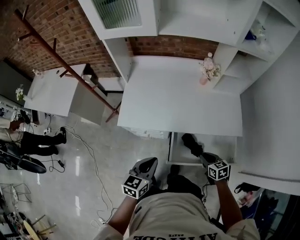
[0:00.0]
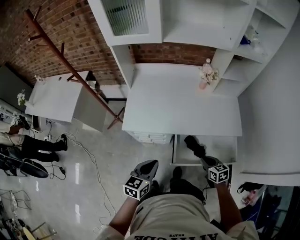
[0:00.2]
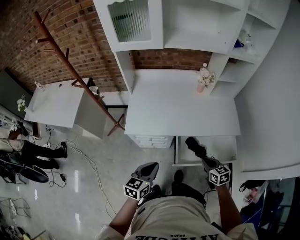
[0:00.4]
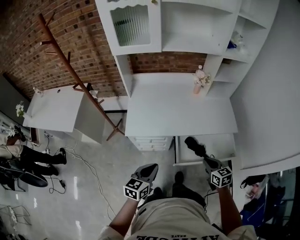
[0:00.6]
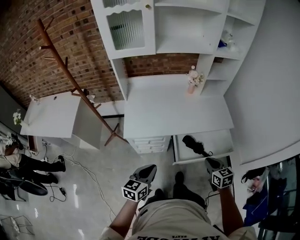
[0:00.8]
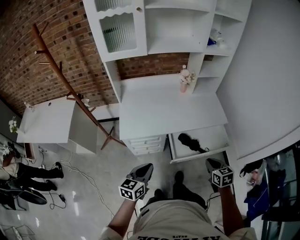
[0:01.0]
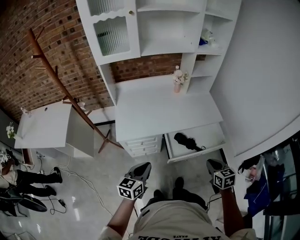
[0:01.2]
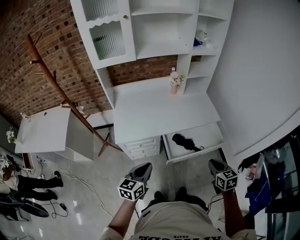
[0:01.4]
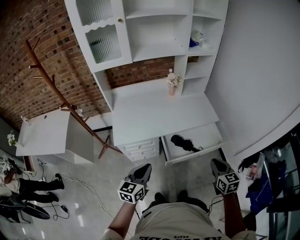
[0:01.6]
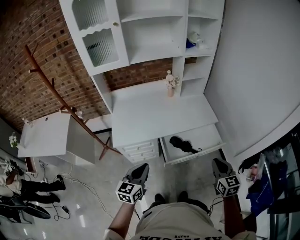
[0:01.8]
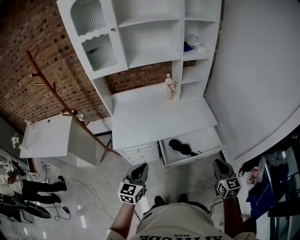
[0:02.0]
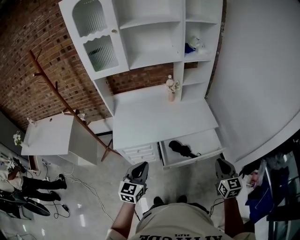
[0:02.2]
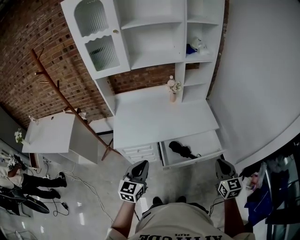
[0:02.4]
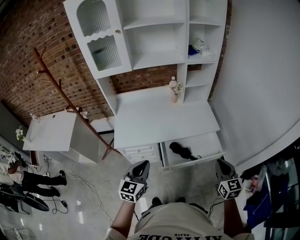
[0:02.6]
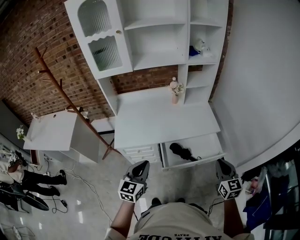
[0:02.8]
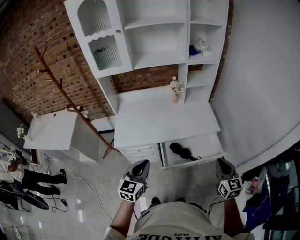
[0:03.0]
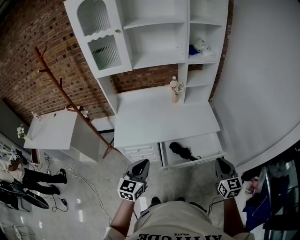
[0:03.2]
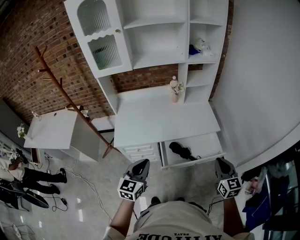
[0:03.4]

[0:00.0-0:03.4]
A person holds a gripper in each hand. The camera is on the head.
0.0 to 1.6 s: The right gripper shifts by about 30 cm, and swivels about 40 degrees. The left gripper moves some 15 cm.
1.6 to 3.4 s: Both grippers move to the right and upward, some 10 cm.

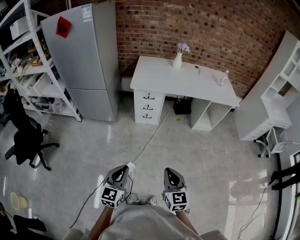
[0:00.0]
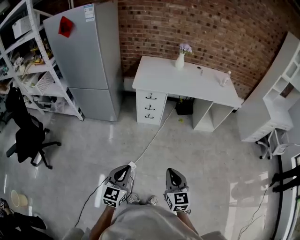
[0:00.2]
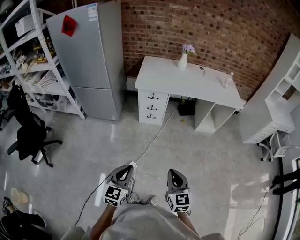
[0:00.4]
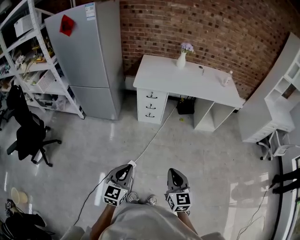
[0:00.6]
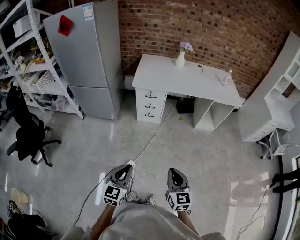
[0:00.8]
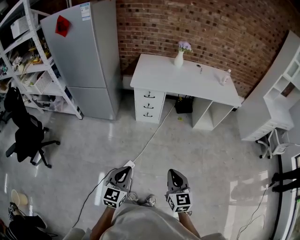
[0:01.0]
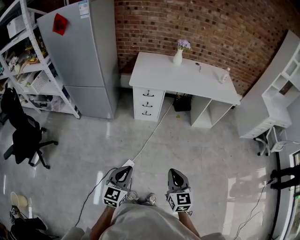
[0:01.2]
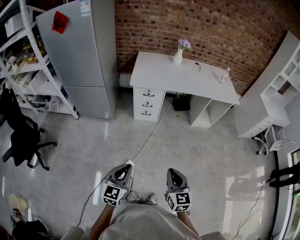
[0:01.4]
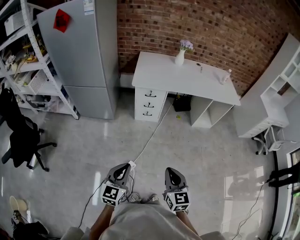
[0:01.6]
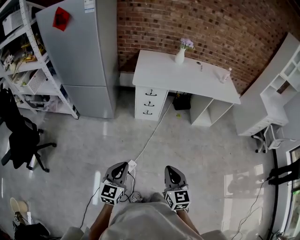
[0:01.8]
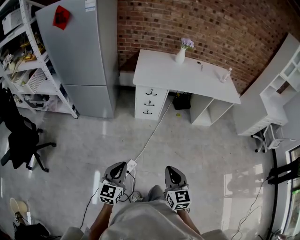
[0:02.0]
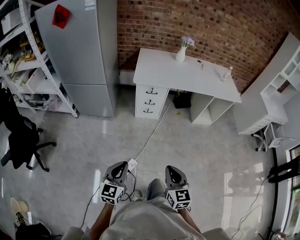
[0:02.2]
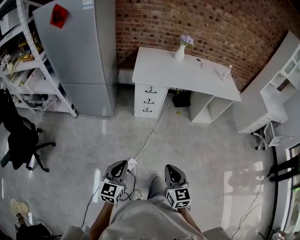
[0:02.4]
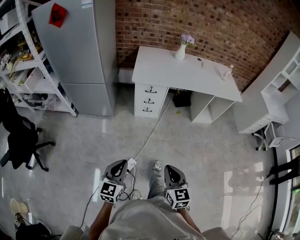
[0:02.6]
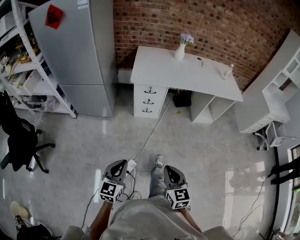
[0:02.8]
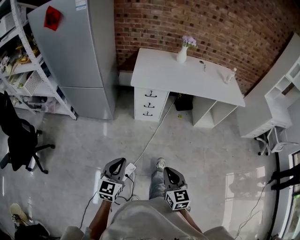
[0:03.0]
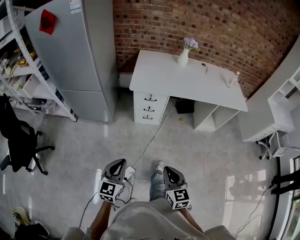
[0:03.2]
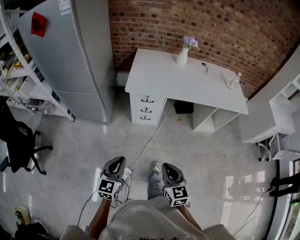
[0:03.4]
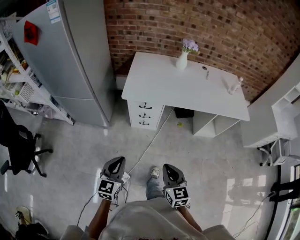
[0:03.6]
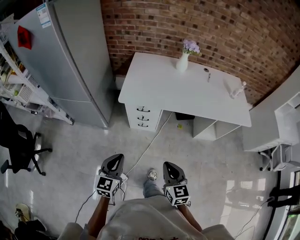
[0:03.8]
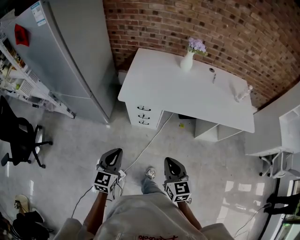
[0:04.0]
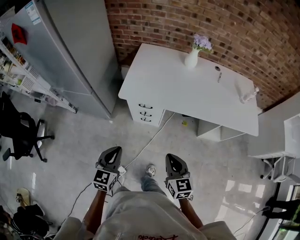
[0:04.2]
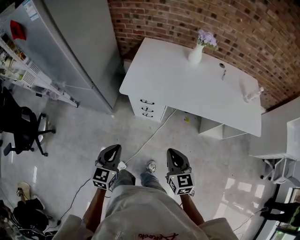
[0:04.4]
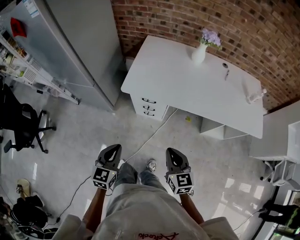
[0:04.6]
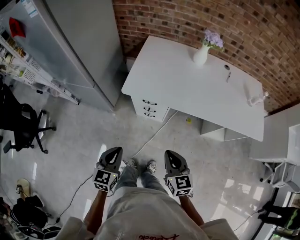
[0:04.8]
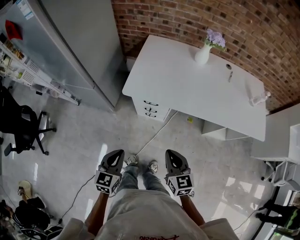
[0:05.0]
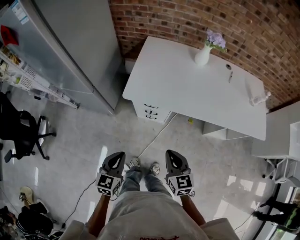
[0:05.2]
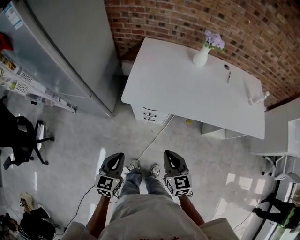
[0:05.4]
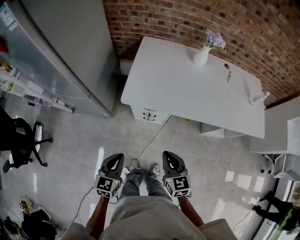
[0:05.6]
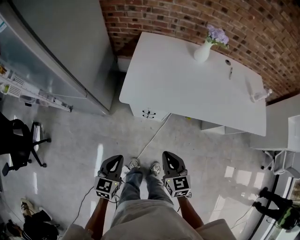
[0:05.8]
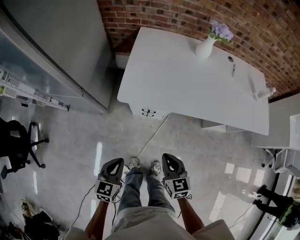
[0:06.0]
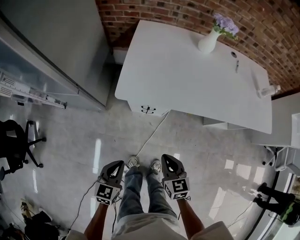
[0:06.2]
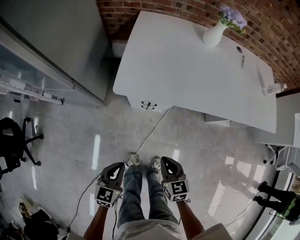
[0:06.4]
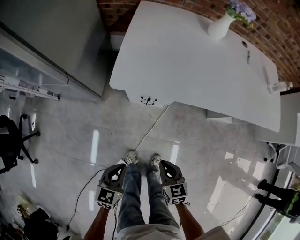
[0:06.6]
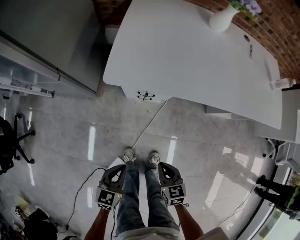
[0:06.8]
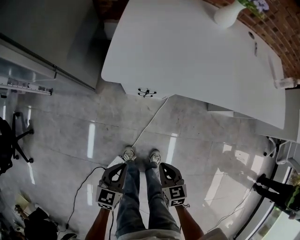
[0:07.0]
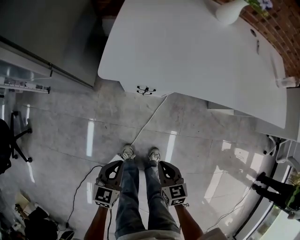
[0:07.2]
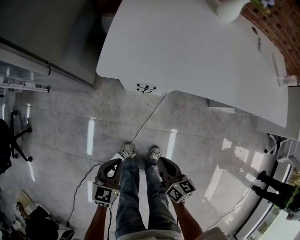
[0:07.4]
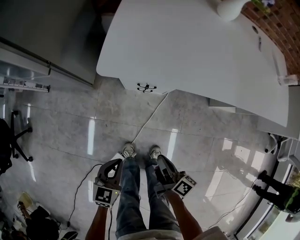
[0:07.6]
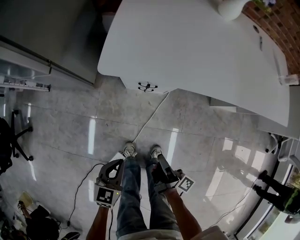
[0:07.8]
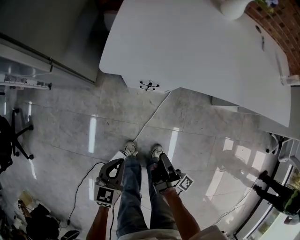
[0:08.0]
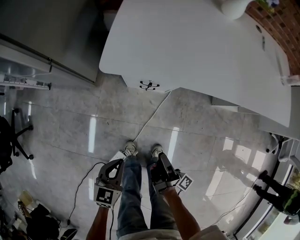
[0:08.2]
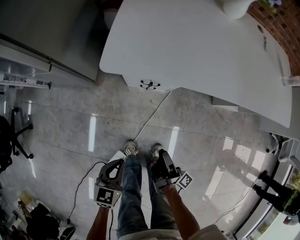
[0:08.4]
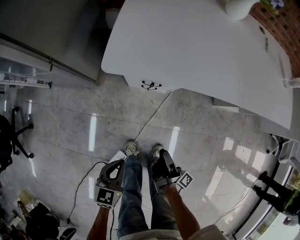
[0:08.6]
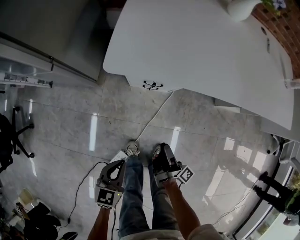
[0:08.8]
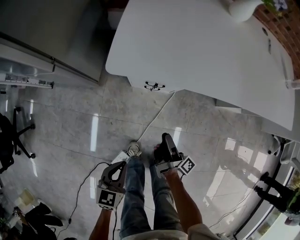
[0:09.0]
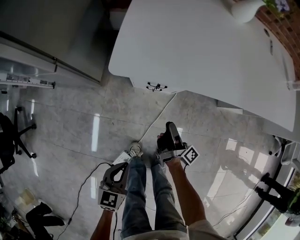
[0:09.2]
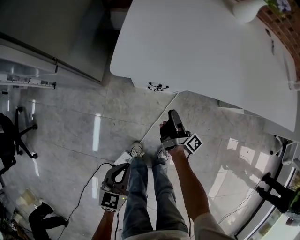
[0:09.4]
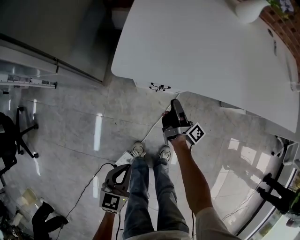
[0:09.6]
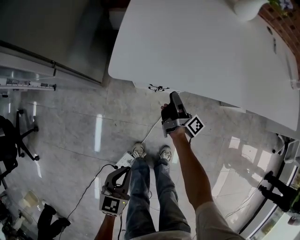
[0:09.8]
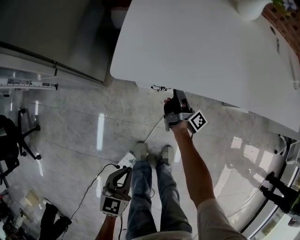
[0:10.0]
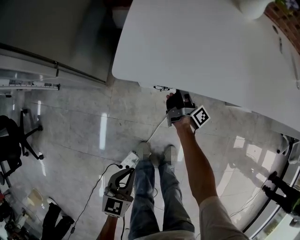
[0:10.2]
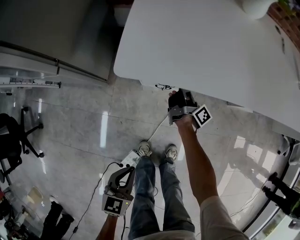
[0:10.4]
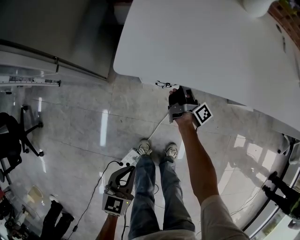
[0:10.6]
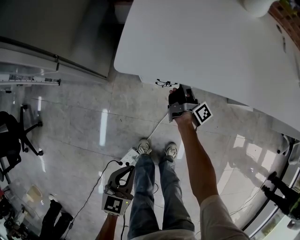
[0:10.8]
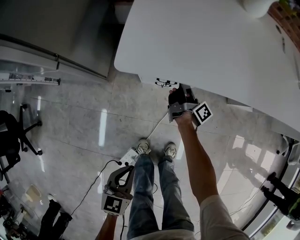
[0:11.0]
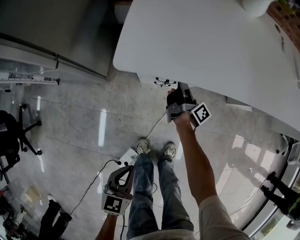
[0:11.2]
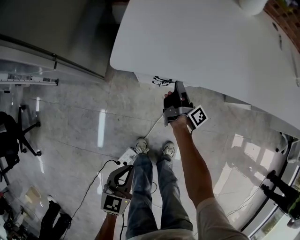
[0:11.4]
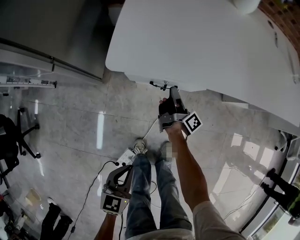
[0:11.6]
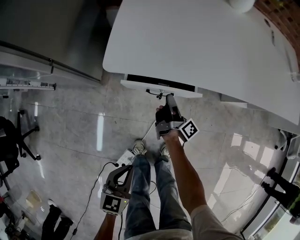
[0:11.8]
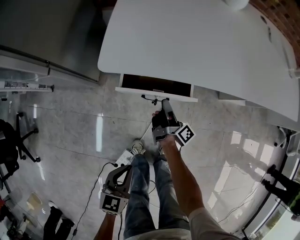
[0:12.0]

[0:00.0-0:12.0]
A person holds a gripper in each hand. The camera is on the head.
0.0 to 1.6 s: The left gripper changes place by roughly 5 cm, while the right gripper ends up roughly 5 cm from where it was.
1.6 to 3.0 s: Both grippers travel together forward, some 10 cm.
3.0 to 4.4 s: The grippers both shift forward and to the right by some 35 cm.
4.4 to 6.0 s: The right gripper shifts approximately 15 cm downward, to the left and forward. Meanwhile the left gripper travels downward, forward and to the left by some 15 cm.
6.0 to 7.6 s: Both grippers move downward, roughly 20 cm. The right gripper rolls clockwise, seen from behind, by approximately 60 degrees.
7.6 to 9.0 s: The right gripper is displaced forward and downward by approximately 10 cm, turns by about 30 degrees, and opens its fingers.
9.0 to 10.4 s: The right gripper travels forward by about 25 cm, and closes its fingers.
10.4 to 12.0 s: The right gripper shifts about 10 cm backward.

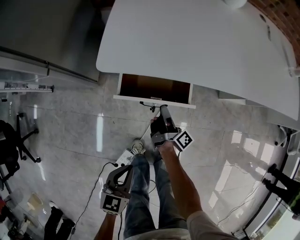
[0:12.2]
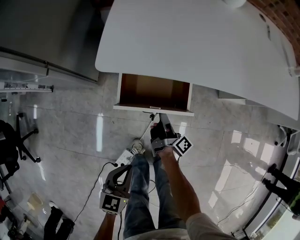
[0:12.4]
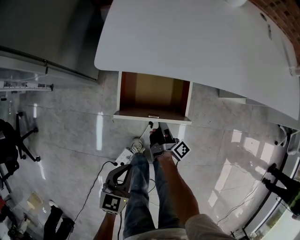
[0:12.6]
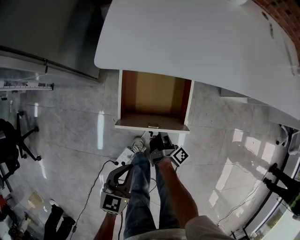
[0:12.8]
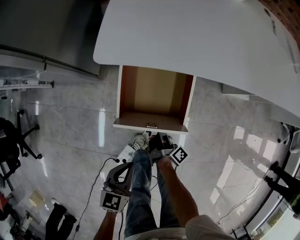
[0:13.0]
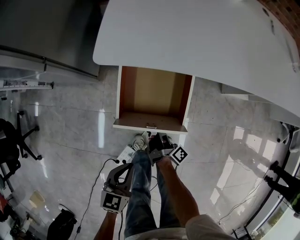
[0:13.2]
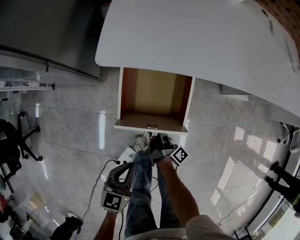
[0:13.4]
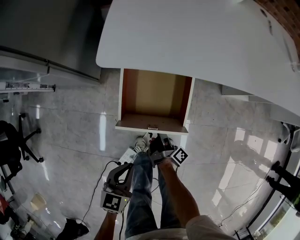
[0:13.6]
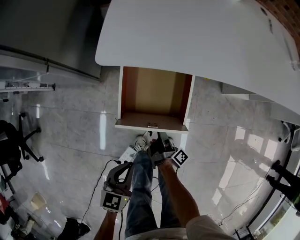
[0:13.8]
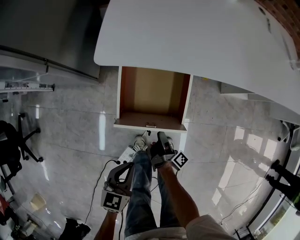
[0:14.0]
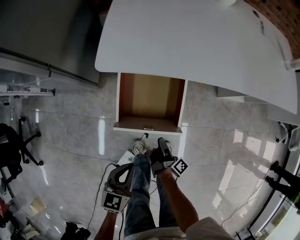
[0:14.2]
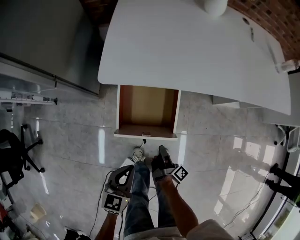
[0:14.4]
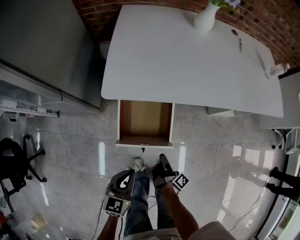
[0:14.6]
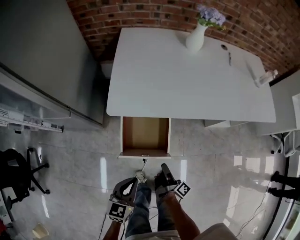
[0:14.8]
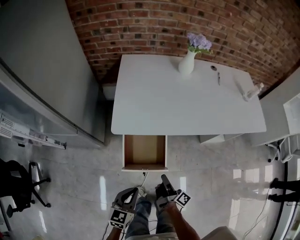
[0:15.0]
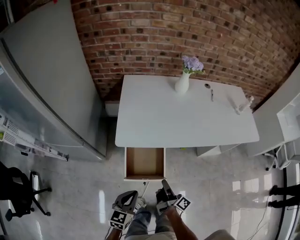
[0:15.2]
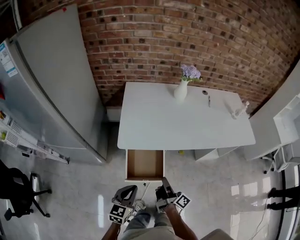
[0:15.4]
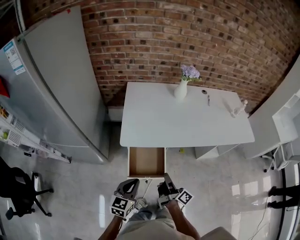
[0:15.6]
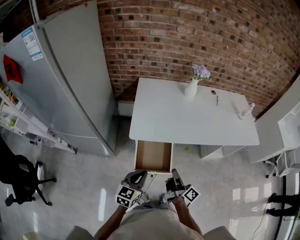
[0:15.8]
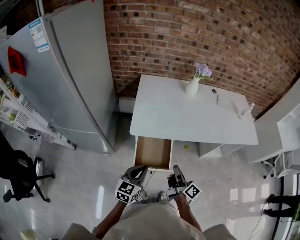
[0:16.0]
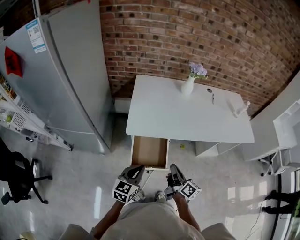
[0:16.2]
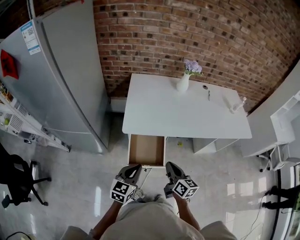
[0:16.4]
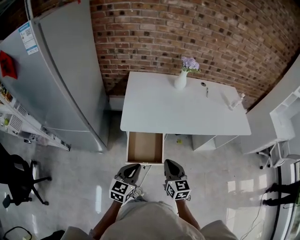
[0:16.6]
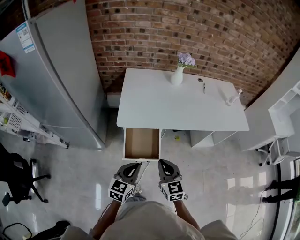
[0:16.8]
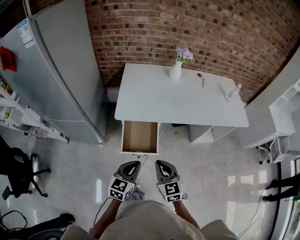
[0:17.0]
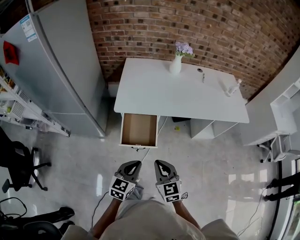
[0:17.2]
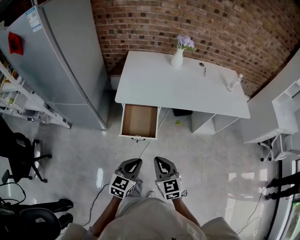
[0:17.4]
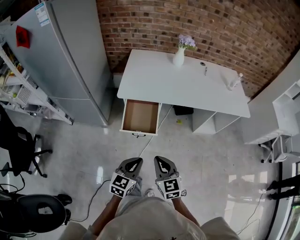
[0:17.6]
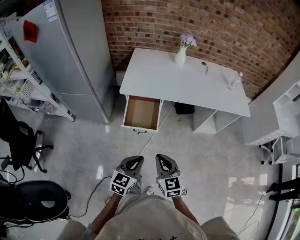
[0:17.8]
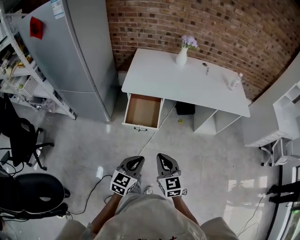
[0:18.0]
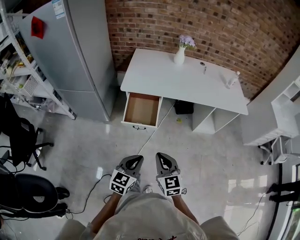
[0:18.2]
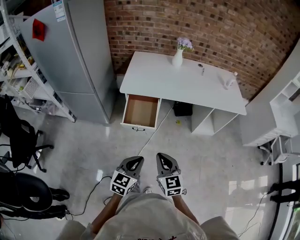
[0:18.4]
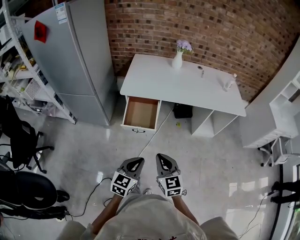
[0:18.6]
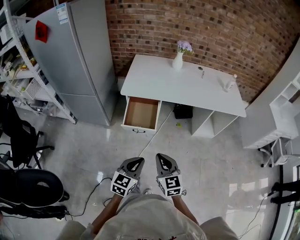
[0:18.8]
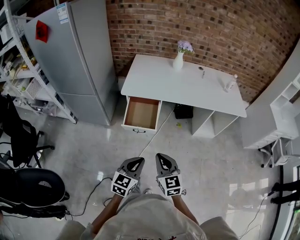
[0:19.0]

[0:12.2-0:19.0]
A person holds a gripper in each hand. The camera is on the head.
12.2 to 13.6 s: The right gripper travels backward and downward by about 15 cm, and opens.
13.6 to 15.0 s: The right gripper moves upward, some 25 cm, and closes, while the left gripper moves upward, approximately 15 cm.
15.0 to 16.2 s: The grippers both shift upward by about 15 cm. The right gripper swivels approximately 30 degrees.
16.2 to 17.6 s: The left gripper heads backward and to the right, covering about 25 cm. Meanwhile the right gripper is displaced backward by some 20 cm, and rotates around the line of its fingers by roughly 60 degrees, counterclockwise from behind.
17.6 to 19.0 s: Both grippers travel together backward, roughly 10 cm.

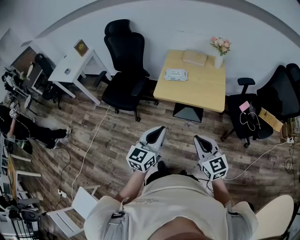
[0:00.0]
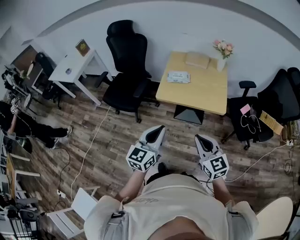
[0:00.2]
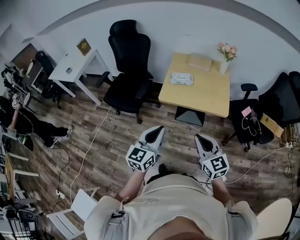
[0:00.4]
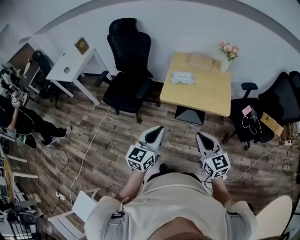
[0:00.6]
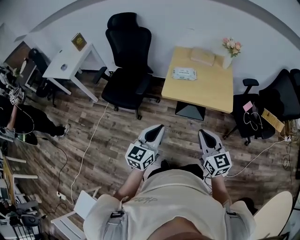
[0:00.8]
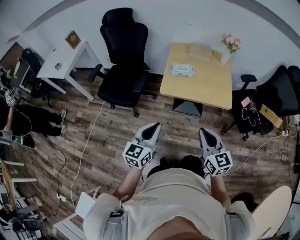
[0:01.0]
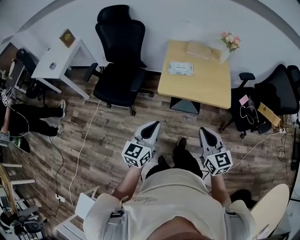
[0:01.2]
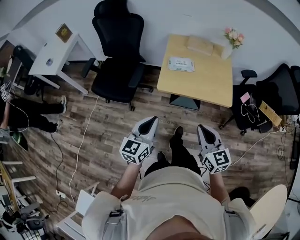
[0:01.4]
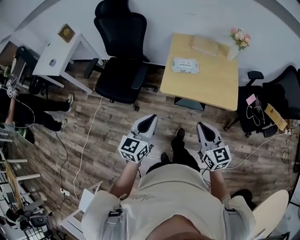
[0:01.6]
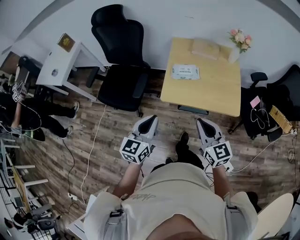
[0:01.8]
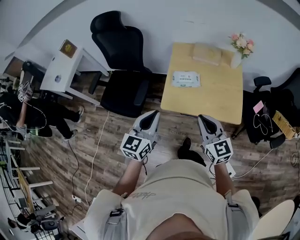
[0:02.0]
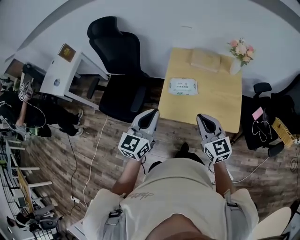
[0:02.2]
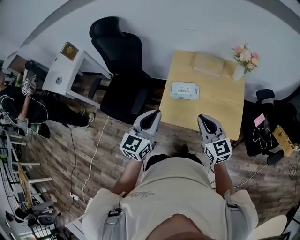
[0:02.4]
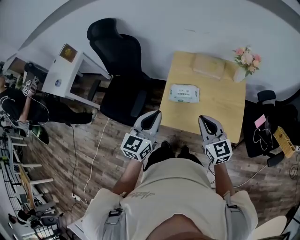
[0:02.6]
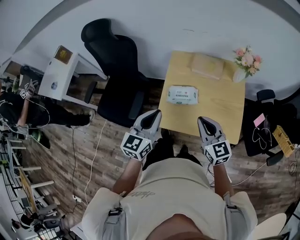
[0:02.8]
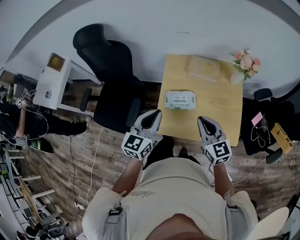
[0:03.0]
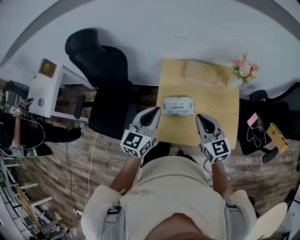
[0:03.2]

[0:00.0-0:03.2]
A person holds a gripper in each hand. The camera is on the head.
0.0 to 1.6 s: The grippers both shift forward and to the left by approximately 20 cm.
1.6 to 3.2 s: Both grippers travel together forward, some 40 cm.
